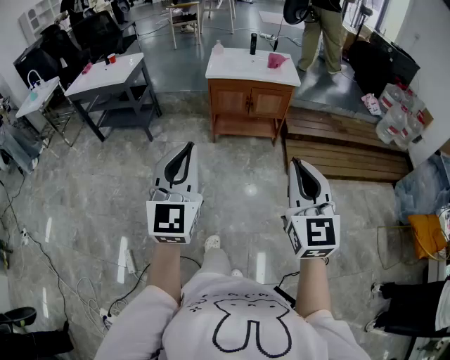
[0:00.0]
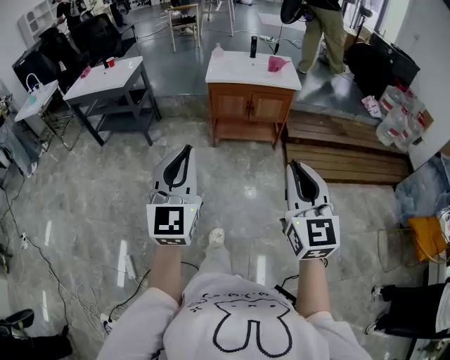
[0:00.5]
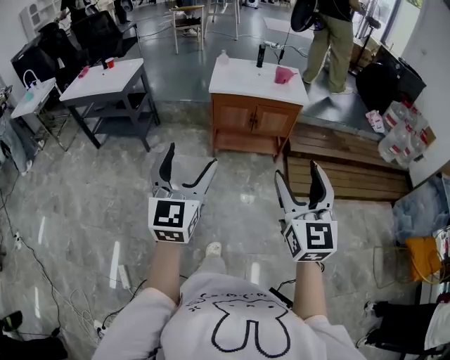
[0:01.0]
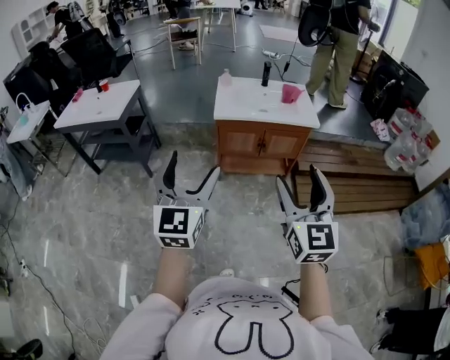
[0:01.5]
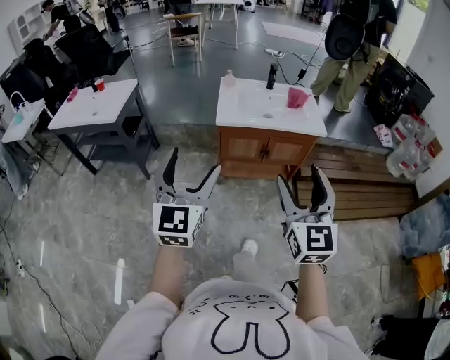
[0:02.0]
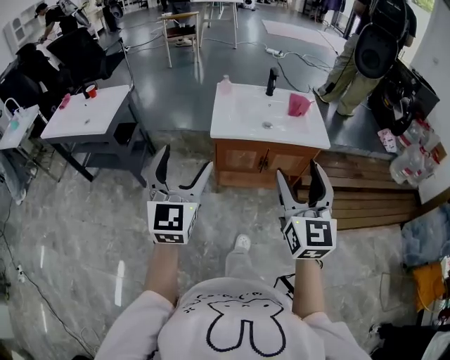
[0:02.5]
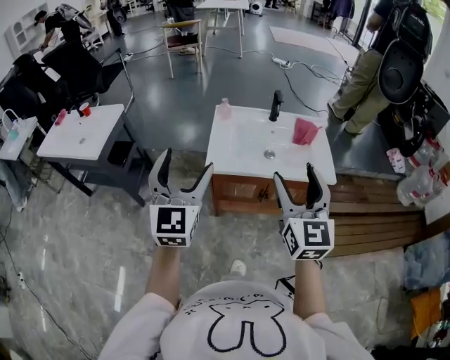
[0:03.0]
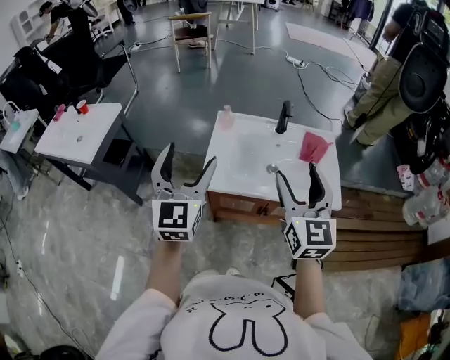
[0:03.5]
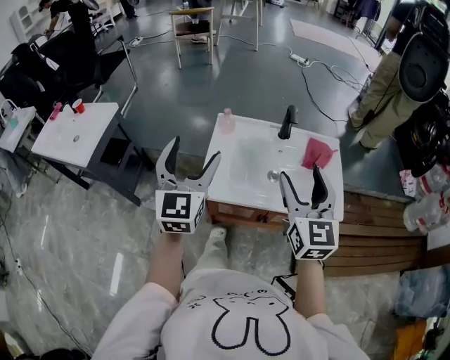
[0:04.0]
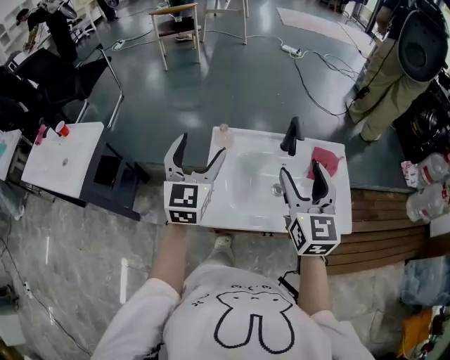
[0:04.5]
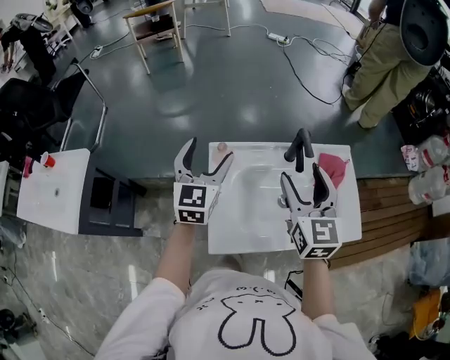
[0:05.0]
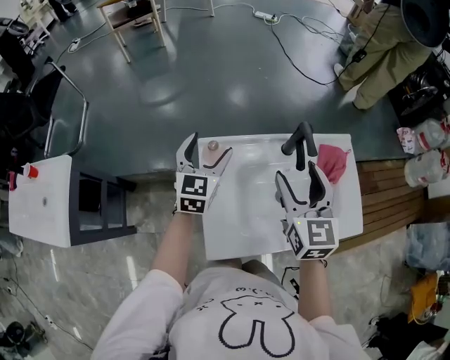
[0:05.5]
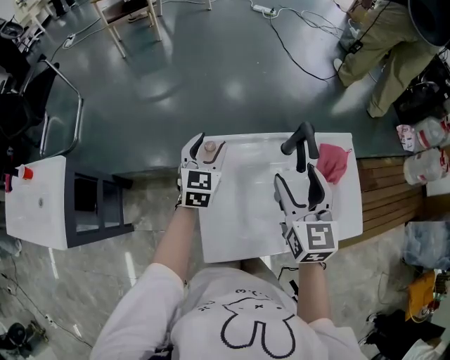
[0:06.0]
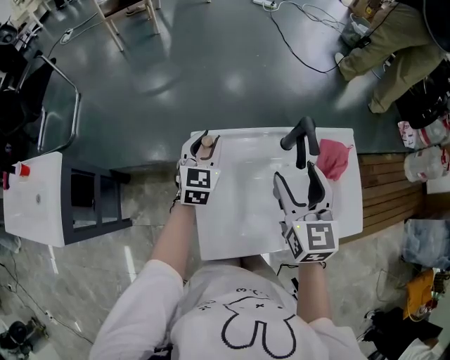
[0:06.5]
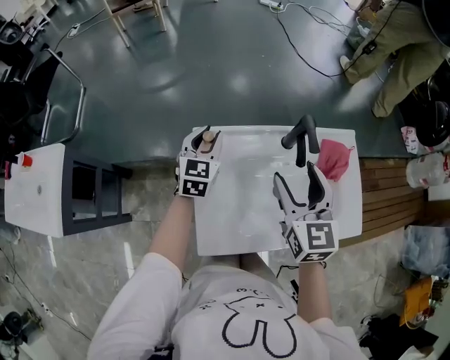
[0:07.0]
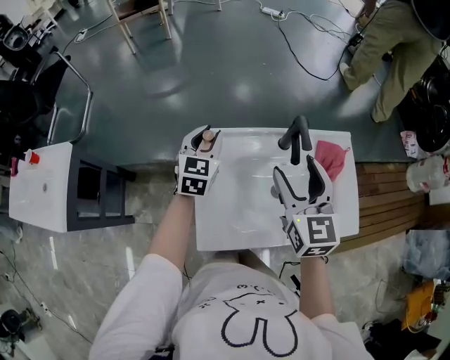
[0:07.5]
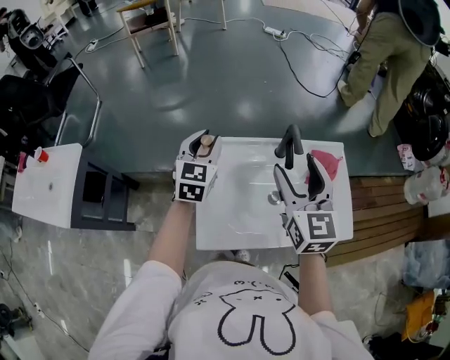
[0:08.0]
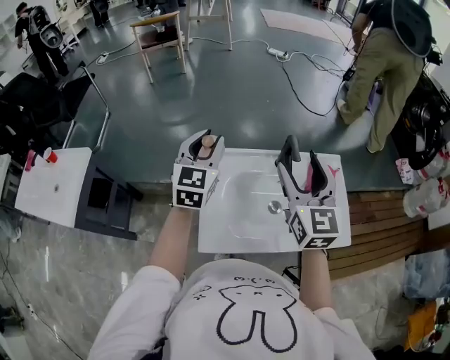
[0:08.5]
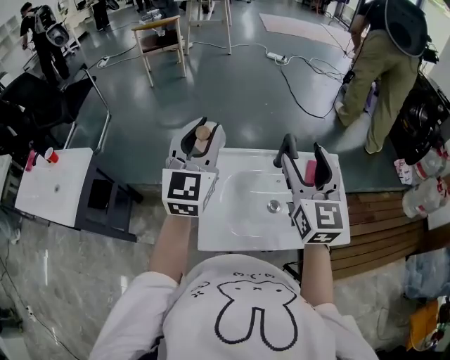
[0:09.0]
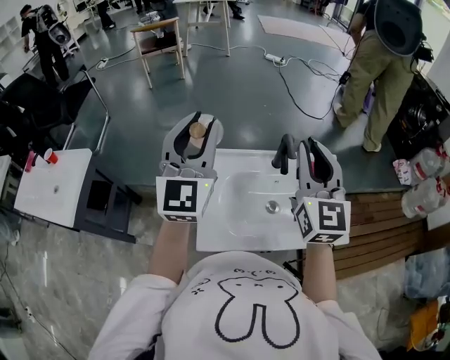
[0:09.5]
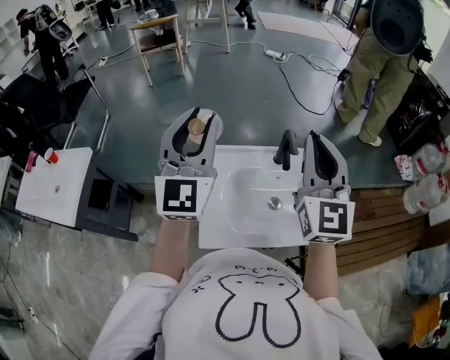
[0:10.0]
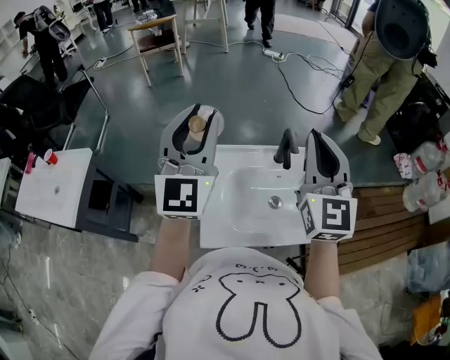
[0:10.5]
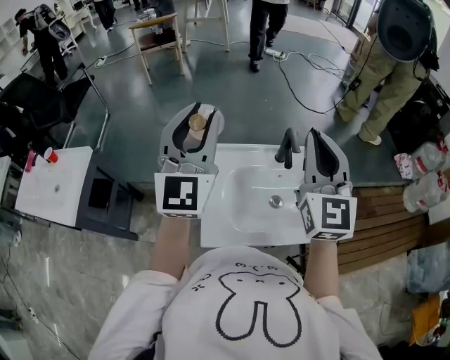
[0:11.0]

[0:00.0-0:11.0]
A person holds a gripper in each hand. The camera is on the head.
0:00.0 to 0:02.0: The two grippers go roughly 35 cm forward. The right gripper opens. Meanwhile the left gripper opens its fingers.
0:02.0 to 0:03.5: The two grippers go roughly 40 cm forward.
0:03.5 to 0:05.5: The right gripper shifts about 30 cm forward; the left gripper travels forward and downward by some 40 cm, and changes its angle by about 30 degrees.
0:05.5 to 0:07.5: The left gripper closes up.
0:07.5 to 0:09.0: The left gripper is displaced upward and backward by roughly 25 cm, and turns by roughly 30 degrees. The right gripper goes some 10 cm upward.
0:09.0 to 0:11.0: Both grippers move upward, about 5 cm. The right gripper closes up.

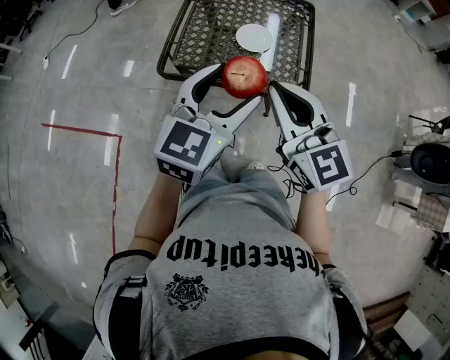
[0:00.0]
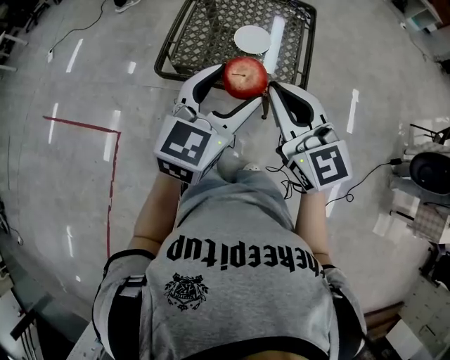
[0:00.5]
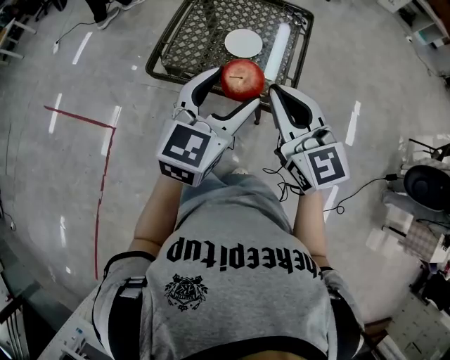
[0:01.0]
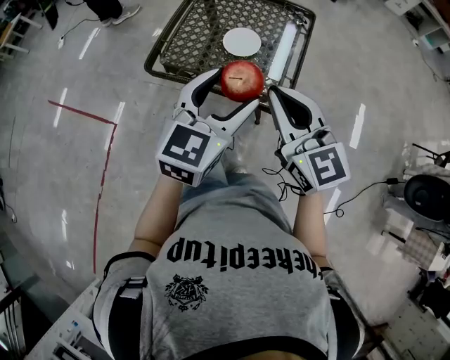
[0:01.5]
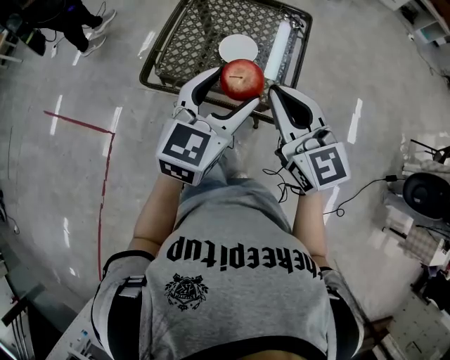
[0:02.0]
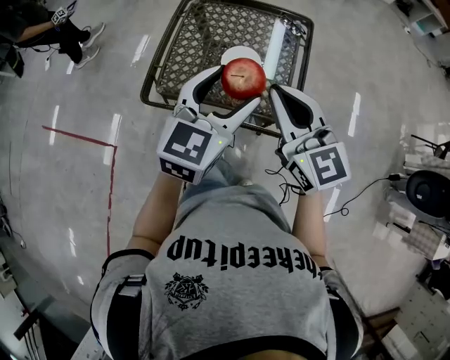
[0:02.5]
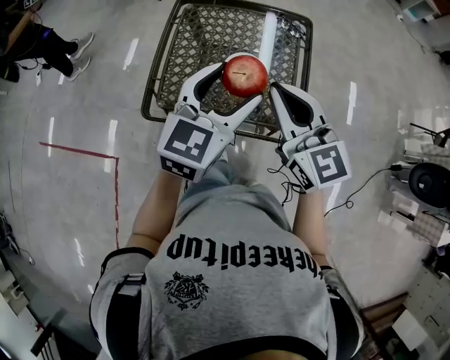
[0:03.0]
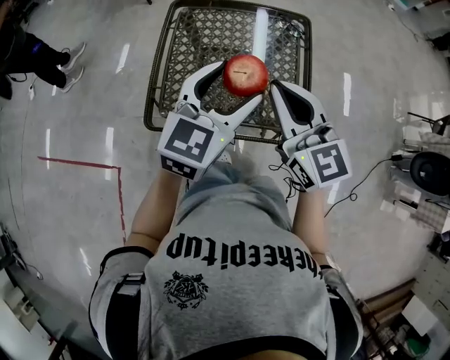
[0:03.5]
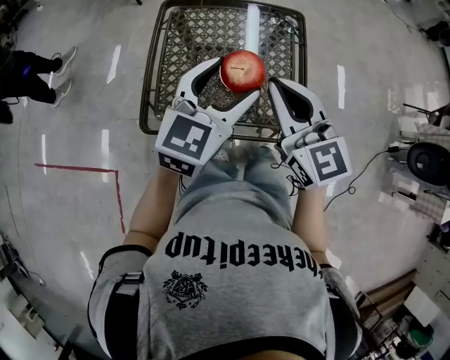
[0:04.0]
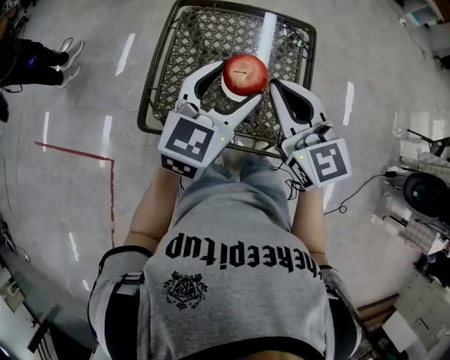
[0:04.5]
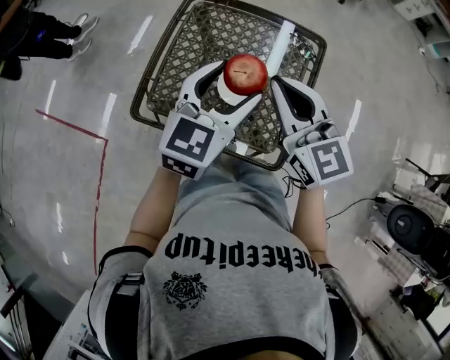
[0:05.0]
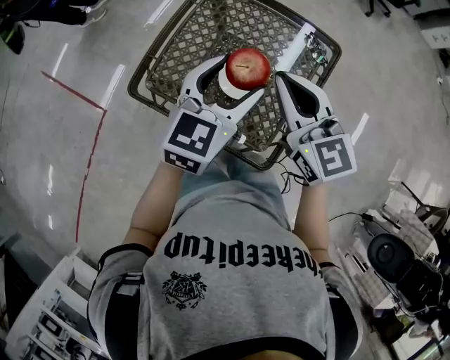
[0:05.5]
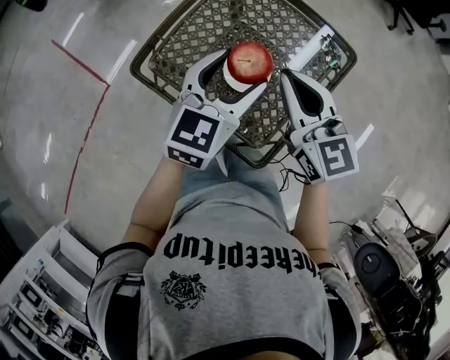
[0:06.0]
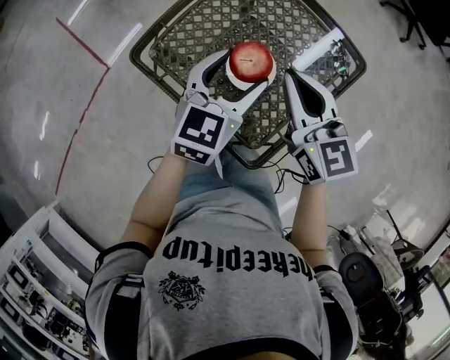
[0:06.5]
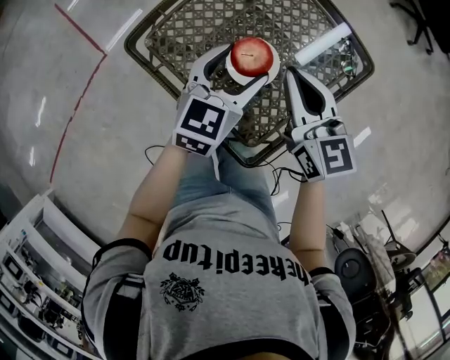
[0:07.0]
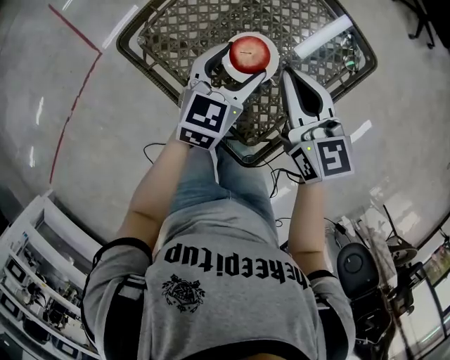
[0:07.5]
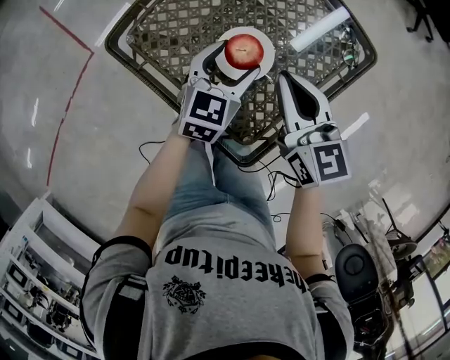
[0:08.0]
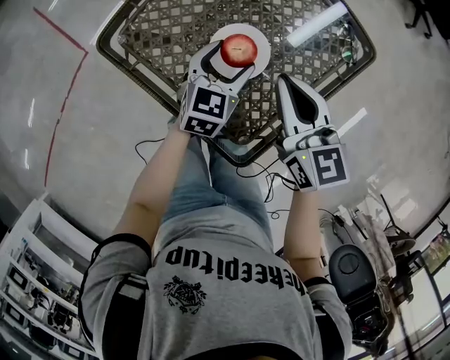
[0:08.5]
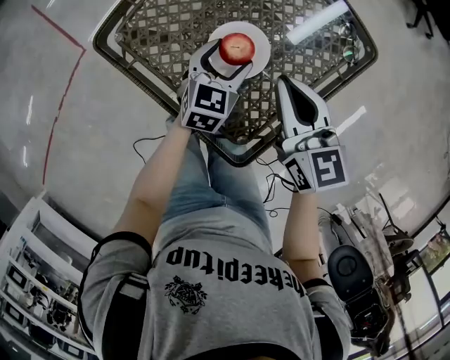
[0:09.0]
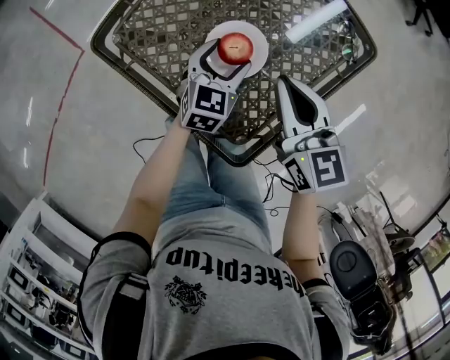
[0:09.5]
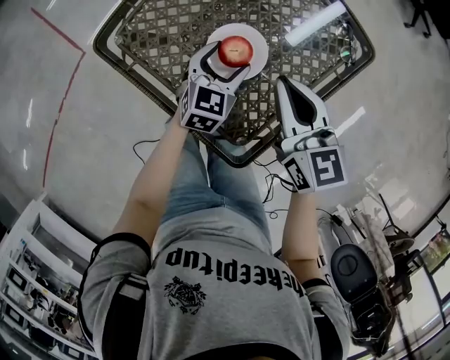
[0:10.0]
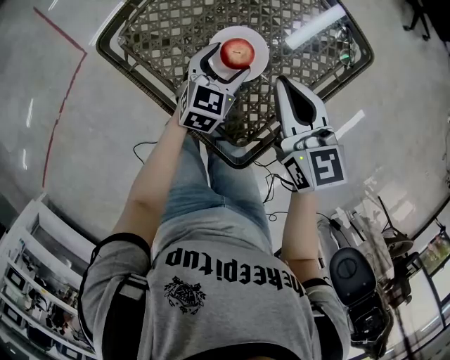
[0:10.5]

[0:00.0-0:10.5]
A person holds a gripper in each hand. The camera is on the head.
0:00.0 to 0:02.0: Both grippers travel together to the right and forward, about 15 cm.
0:02.0 to 0:04.0: Both grippers move forward and to the left, about 15 cm.
0:04.0 to 0:06.5: The left gripper goes about 10 cm downward, and changes its angle by about 40 degrees. Meanwhile the right gripper changes place by roughly 15 cm, and rotates about 40 degrees.
0:06.5 to 0:08.5: The right gripper heads downward, covering some 10 cm, while the left gripper shifts approximately 20 cm downward.
0:08.5 to 0:10.5: The grippers stay close to where they were, moving slightly.

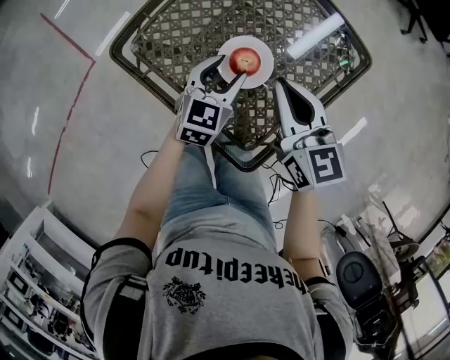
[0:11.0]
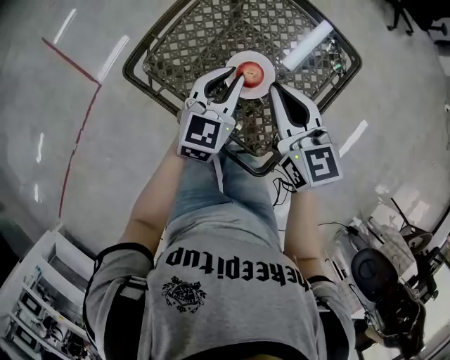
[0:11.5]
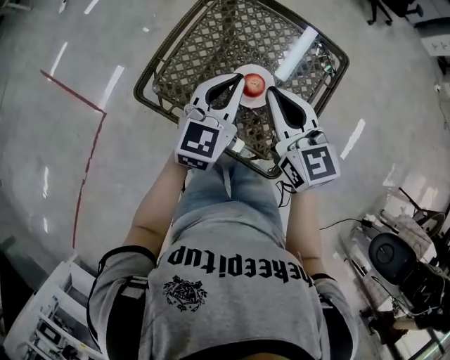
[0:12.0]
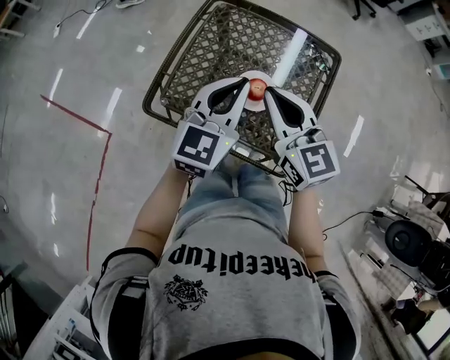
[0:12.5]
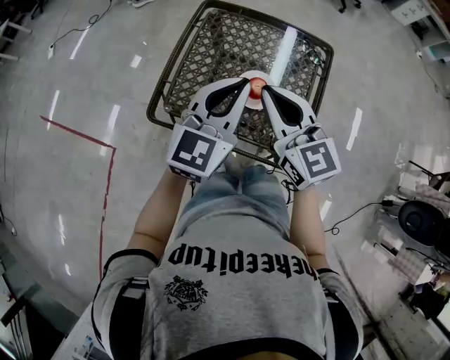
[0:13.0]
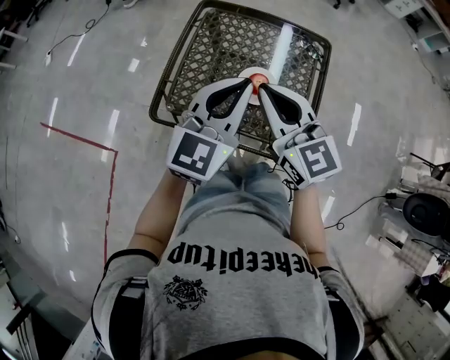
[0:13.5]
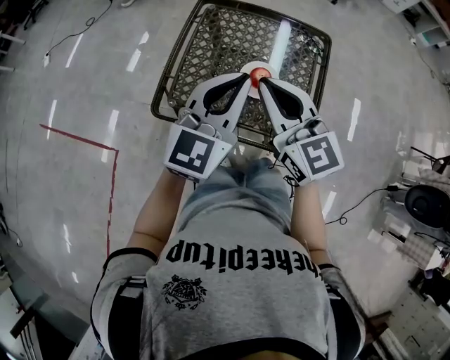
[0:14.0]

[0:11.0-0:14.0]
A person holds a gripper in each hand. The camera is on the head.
0:11.0 to 0:12.5: The right gripper travels upward and to the left by some 15 cm. Meanwhile the left gripper heads upward, covering approximately 25 cm, swivels some 30 degrees, and closes its fingers.
0:12.5 to 0:14.0: The right gripper moves some 5 cm. Meanwhile the left gripper heads backward, covering roughly 5 cm.

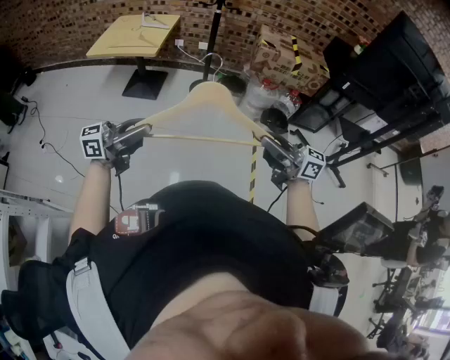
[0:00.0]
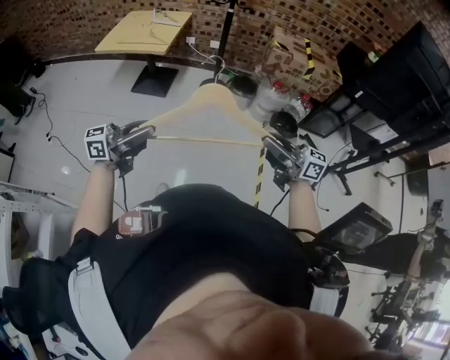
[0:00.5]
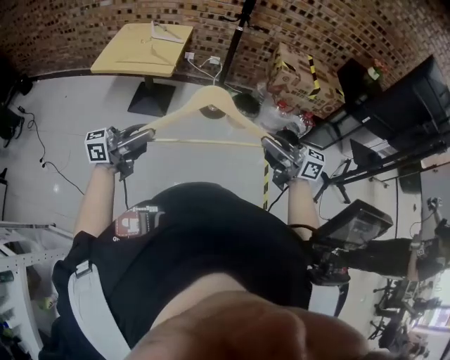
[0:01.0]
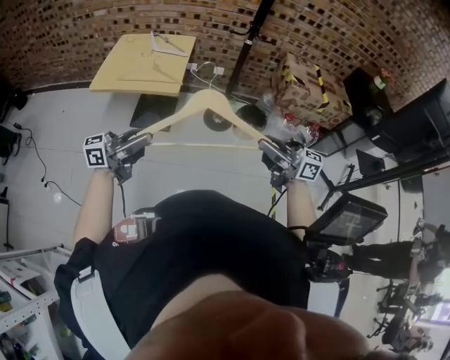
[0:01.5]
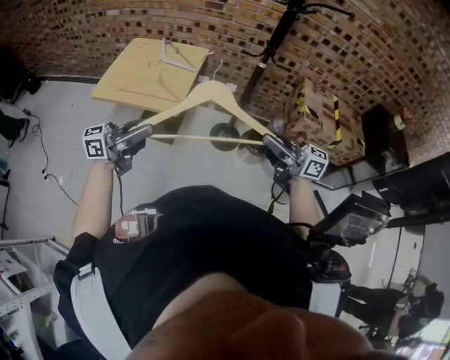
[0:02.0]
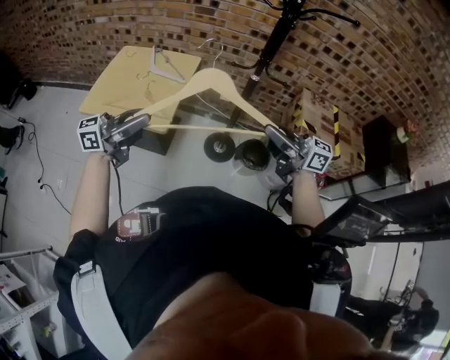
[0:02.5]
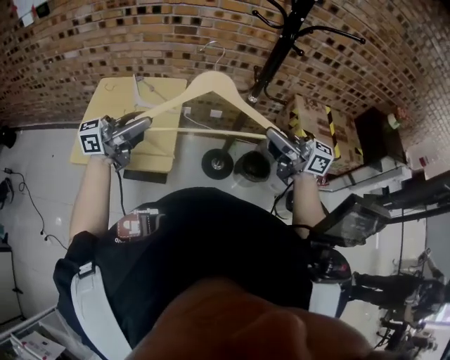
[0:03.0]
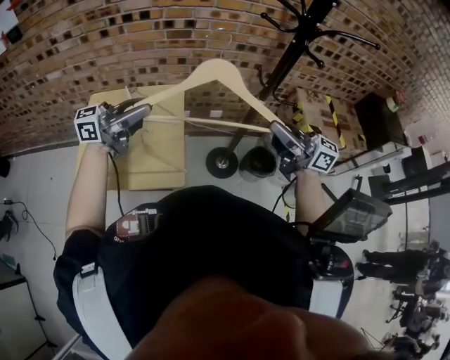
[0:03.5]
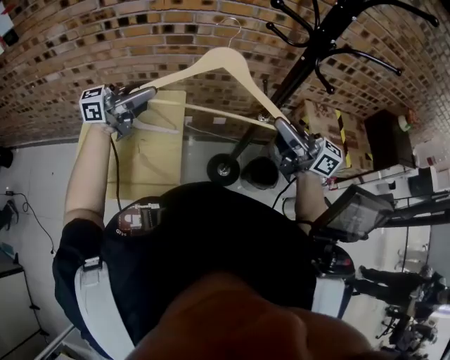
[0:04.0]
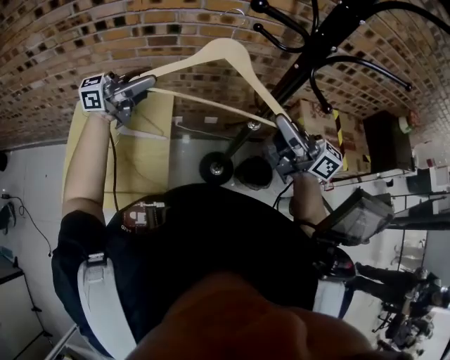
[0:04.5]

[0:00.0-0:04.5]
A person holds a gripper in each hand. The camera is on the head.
0:00.0 to 0:02.0: The two grippers travel together, roughly 50 cm.
0:02.0 to 0:04.5: The two grippers travel together, roughly 50 cm. The right gripper rotates approximately 30 degrees. Meanwhile the left gripper swivels some 20 degrees.
